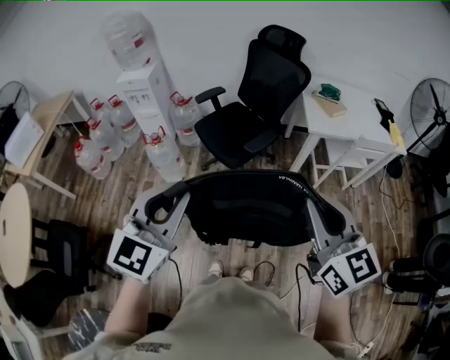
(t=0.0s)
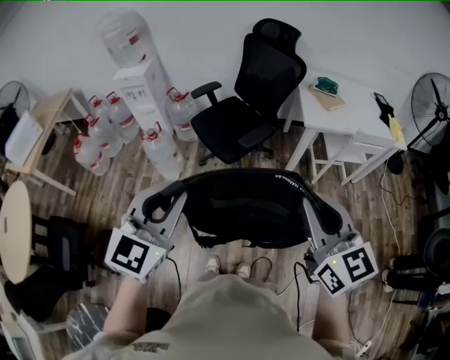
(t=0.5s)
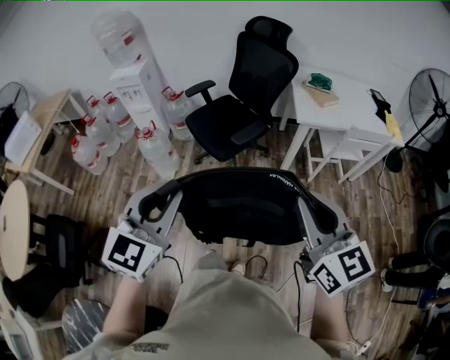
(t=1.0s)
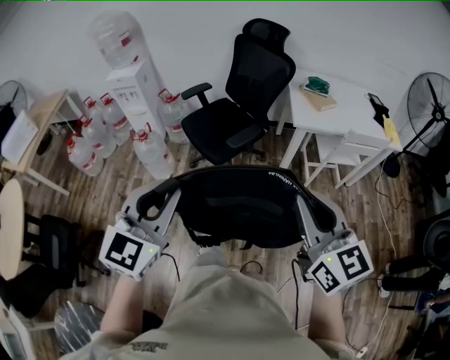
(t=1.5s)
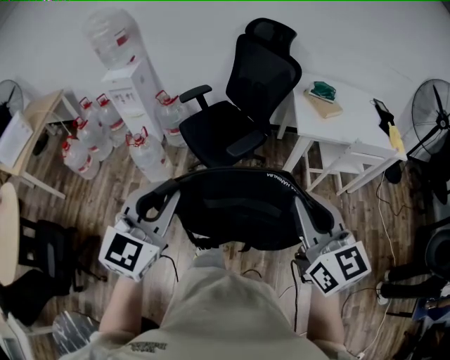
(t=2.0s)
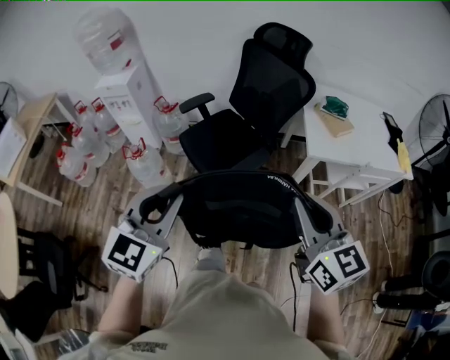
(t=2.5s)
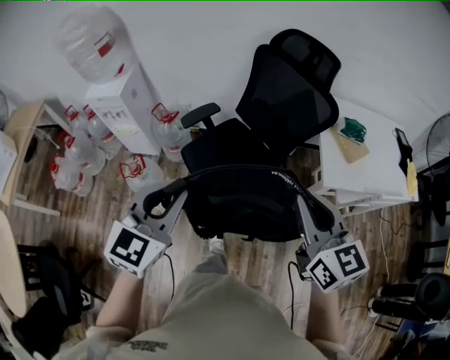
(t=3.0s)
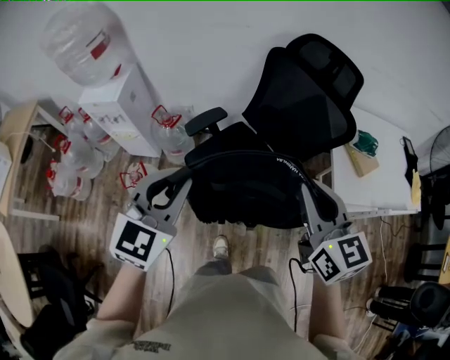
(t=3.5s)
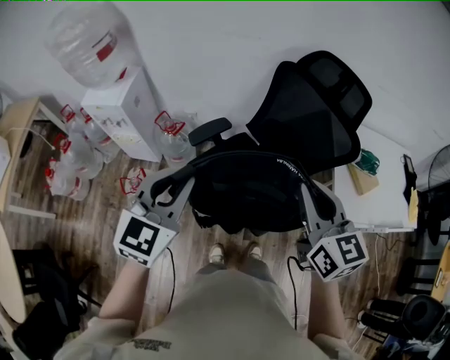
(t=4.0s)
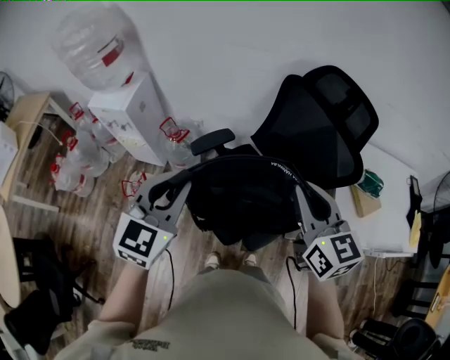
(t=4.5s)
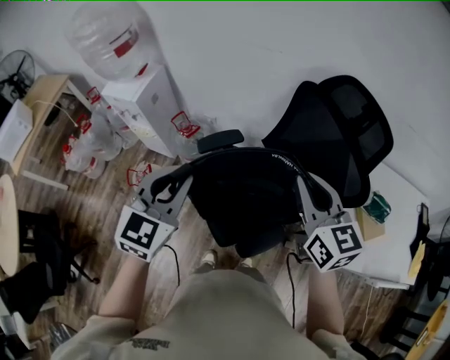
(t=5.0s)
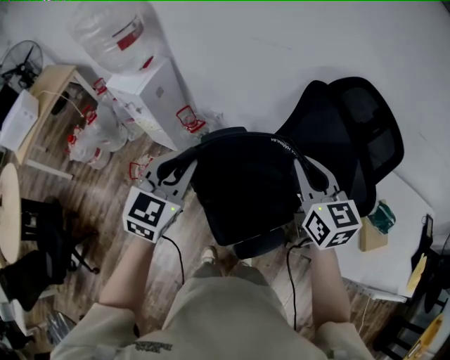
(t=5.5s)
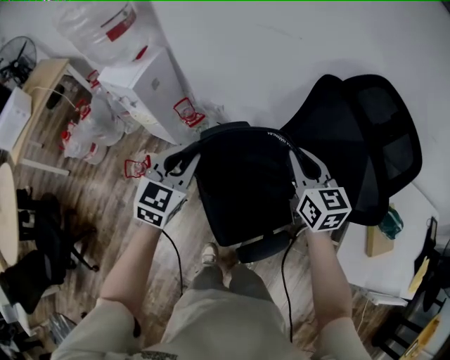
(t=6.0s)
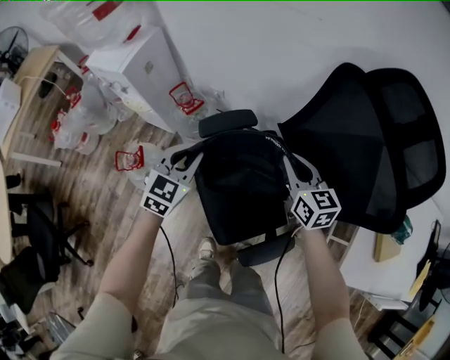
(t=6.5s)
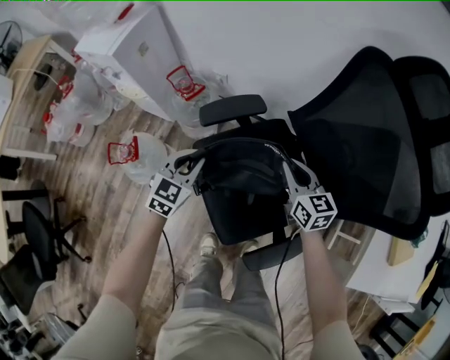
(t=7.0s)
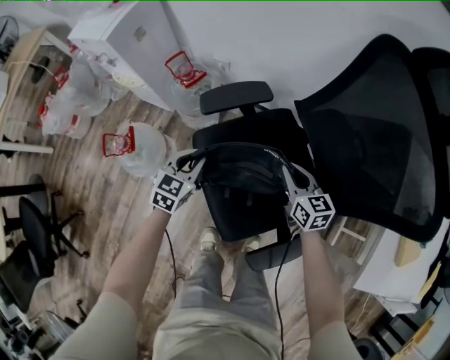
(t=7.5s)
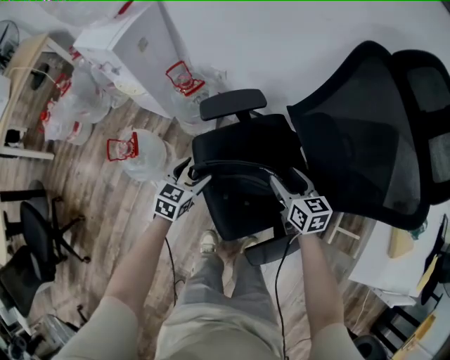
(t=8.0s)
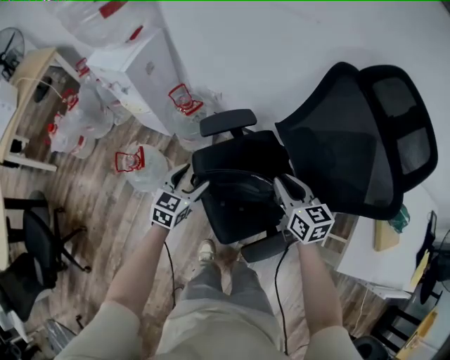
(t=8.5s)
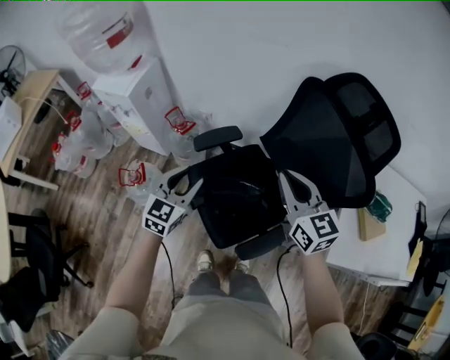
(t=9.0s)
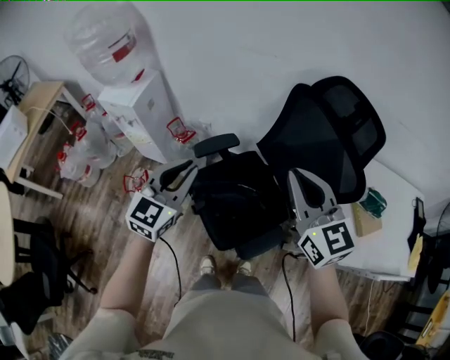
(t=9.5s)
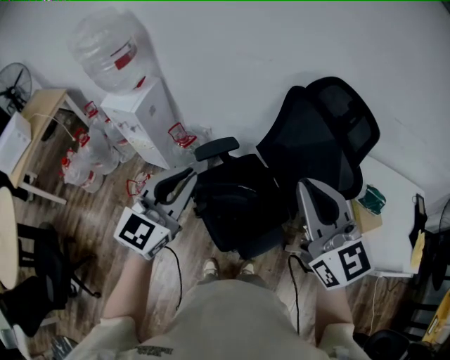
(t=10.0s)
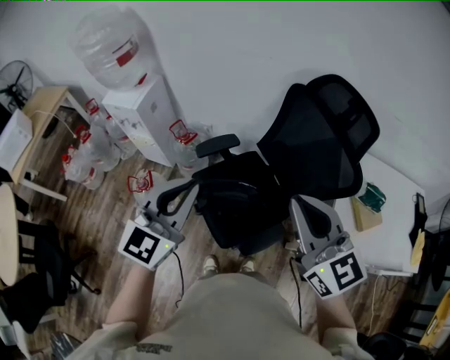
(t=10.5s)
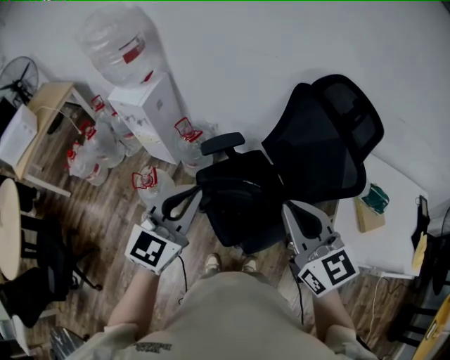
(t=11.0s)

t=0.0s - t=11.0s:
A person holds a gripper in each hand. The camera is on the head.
t=0.0s - t=2.0s: The left gripper is displaced to the right, forward and downward by roughly 10 cm. Meanwhile the right gripper moves forward, to the right and downward, roughly 15 cm.
t=2.0s - t=3.5s: Both grippers are carried forward, roughly 50 cm.
t=3.5s - t=5.5s: Both grippers move forward, about 20 cm. The left gripper turns by roughly 20 degrees.
t=5.5s - t=7.5s: Both grippers travel together downward, some 50 cm.
t=7.5s - t=9.0s: Both grippers move upward, roughly 35 cm. The left gripper opens up; the right gripper turns by some 20 degrees, and opens, then closes again.
t=9.0s - t=11.0s: The right gripper shifts approximately 20 cm backward and upward, while the left gripper goes approximately 25 cm upward and backward, and closes its fingers.

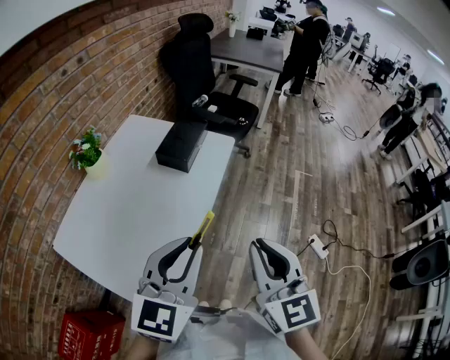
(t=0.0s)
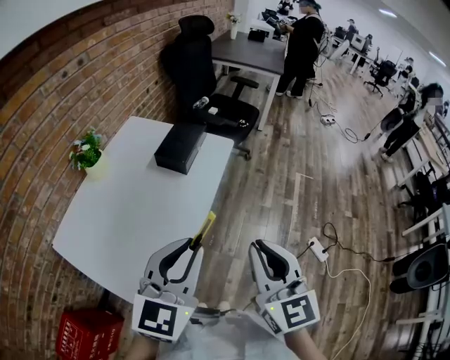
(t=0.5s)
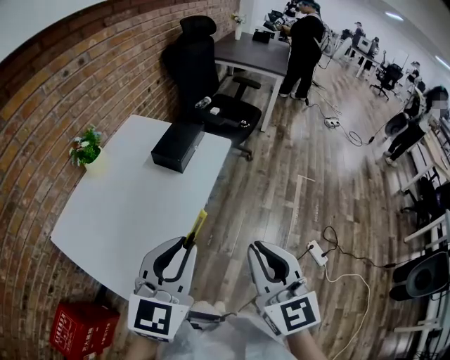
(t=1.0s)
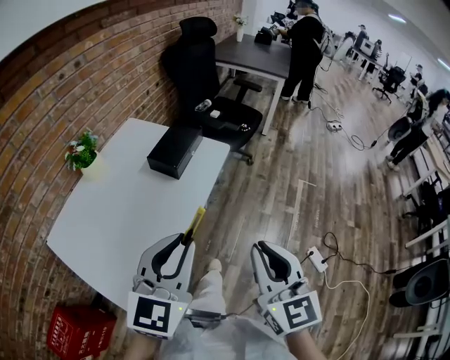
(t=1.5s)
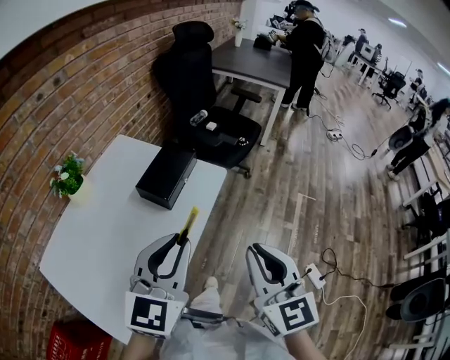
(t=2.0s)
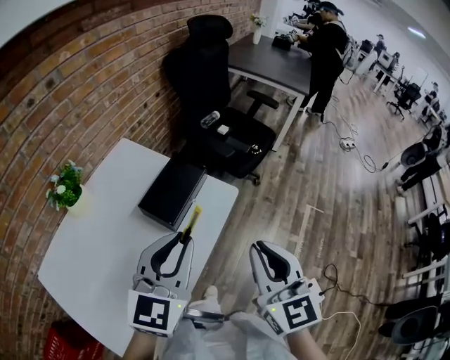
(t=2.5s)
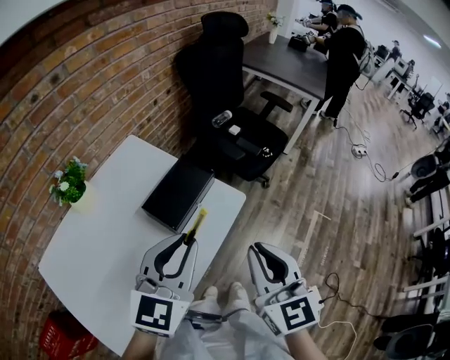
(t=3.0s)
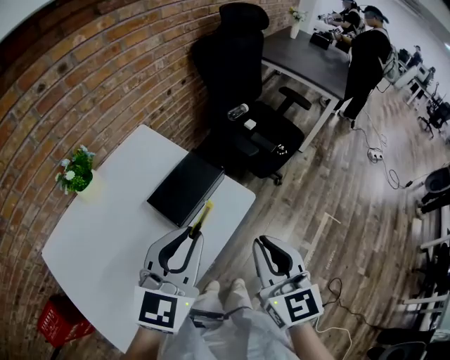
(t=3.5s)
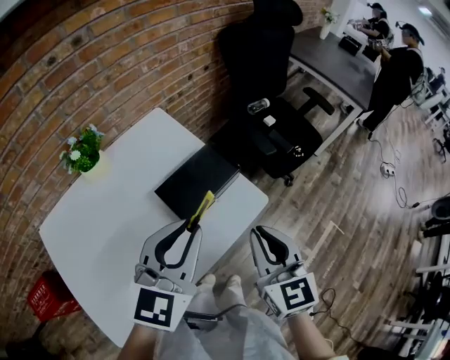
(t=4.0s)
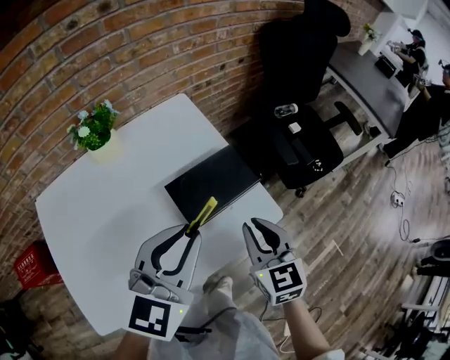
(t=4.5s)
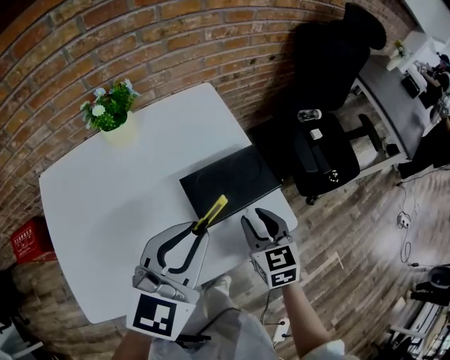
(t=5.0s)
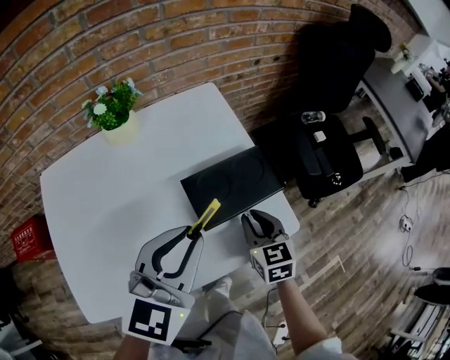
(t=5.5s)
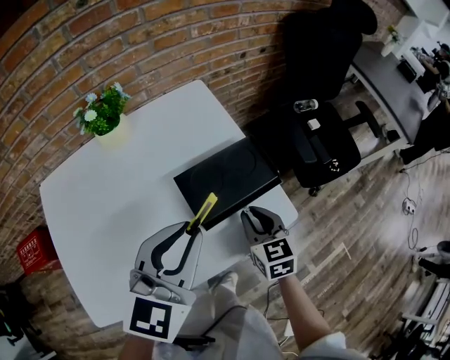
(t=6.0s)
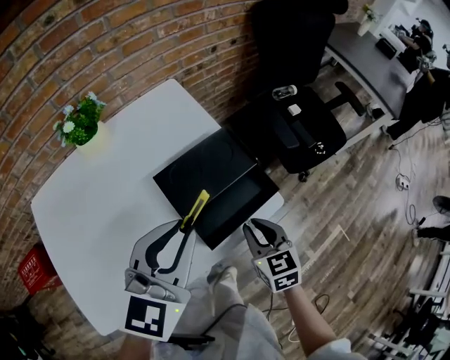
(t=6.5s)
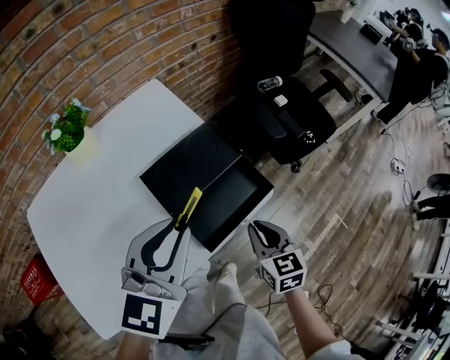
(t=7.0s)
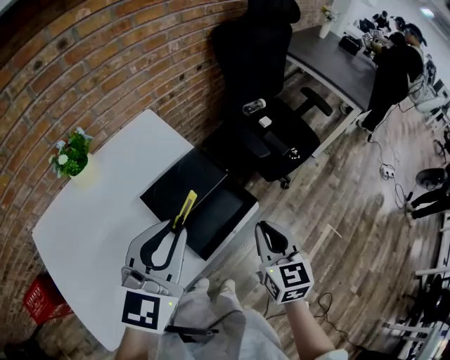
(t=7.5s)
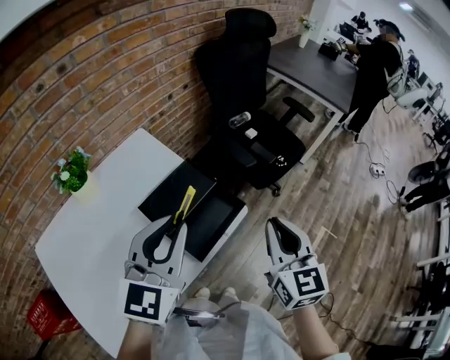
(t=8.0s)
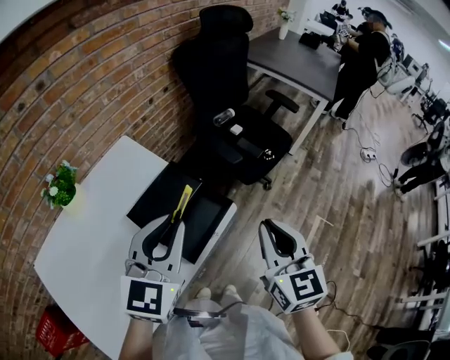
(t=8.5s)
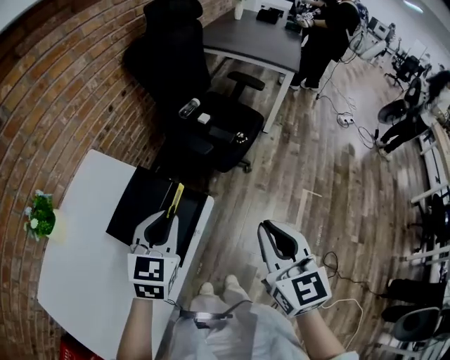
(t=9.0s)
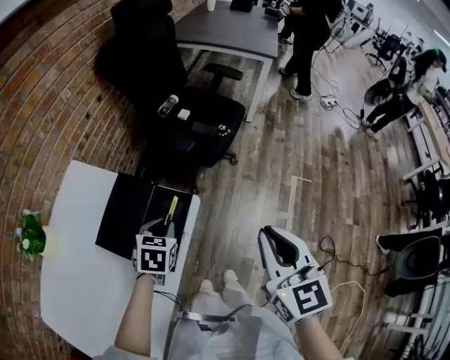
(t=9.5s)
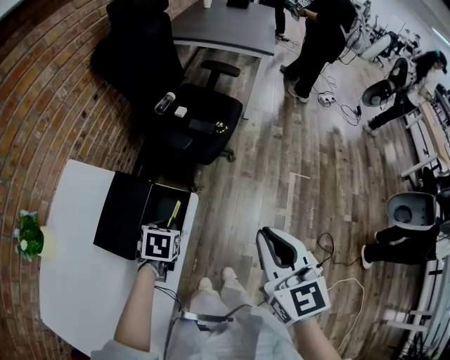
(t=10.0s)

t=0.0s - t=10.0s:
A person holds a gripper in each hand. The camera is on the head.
t=0.0s - t=2.0s: The left gripper goes approximately 20 cm forward. Meanwhile the right gripper shifts about 20 cm forward and to the right.
t=2.0s - t=4.0s: The two grippers go approximately 25 cm forward. The right gripper turns by some 20 degrees.
t=4.0s - t=6.0s: The right gripper travels downward and forward by roughly 25 cm, and changes its angle by about 30 degrees. The left gripper goes approximately 5 cm downward.
t=6.0s - t=8.0s: The left gripper is displaced upward and to the right by about 15 cm. Meanwhile the right gripper shifts approximately 30 cm upward, to the right and backward, and swivels approximately 40 degrees.
t=8.0s - t=10.0s: The left gripper is displaced downward by roughly 30 cm, and tilts its fingers roughly 60 degrees downward. Meanwhile the right gripper goes about 10 cm to the right and backward.

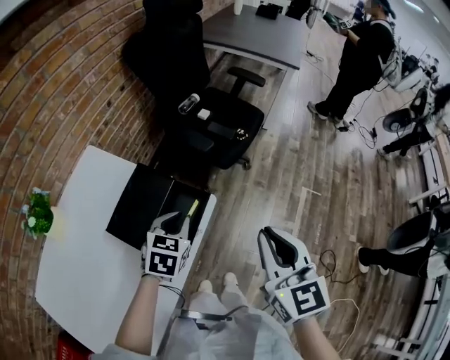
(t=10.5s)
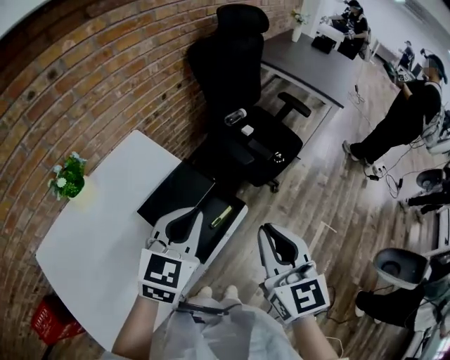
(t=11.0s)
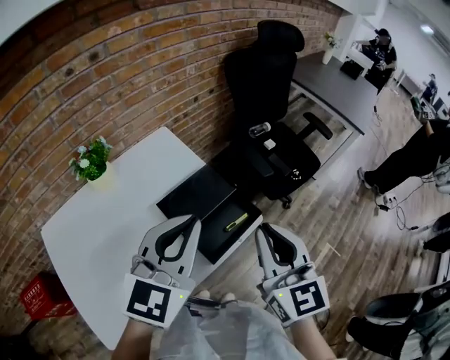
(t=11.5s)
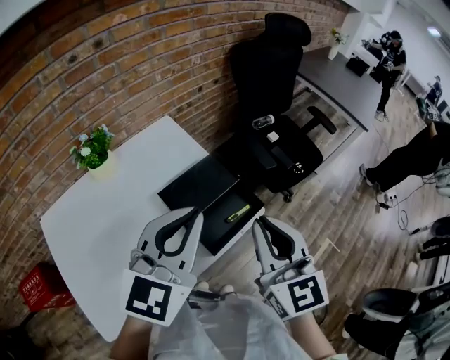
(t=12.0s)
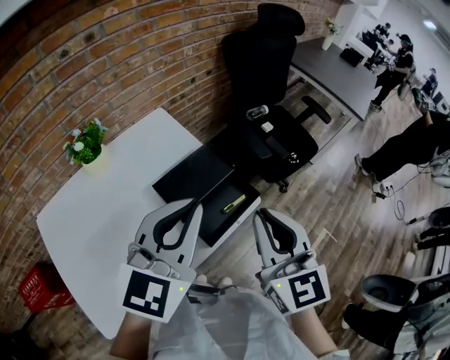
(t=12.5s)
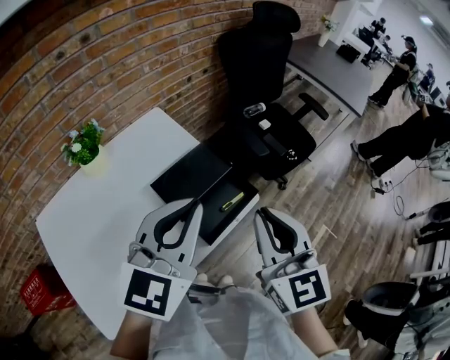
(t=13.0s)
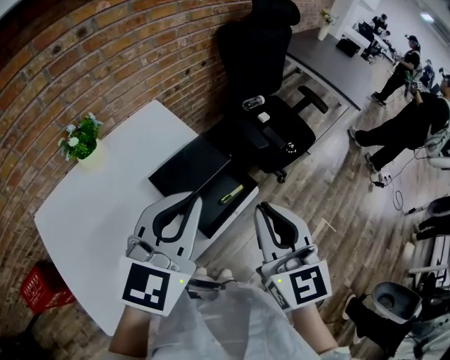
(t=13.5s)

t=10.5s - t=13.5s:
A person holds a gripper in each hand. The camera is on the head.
t=10.5s - t=12.0s: The right gripper shifts some 15 cm to the left and upward, and changes its angle by roughly 30 degrees, while the left gripper shifts about 30 cm upward and to the left, and tilts its fingers some 40 degrees upward.
t=12.0s - t=13.5s: The grippers stay close to where they were, moving slightly.

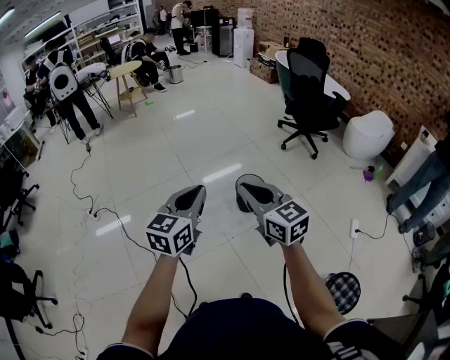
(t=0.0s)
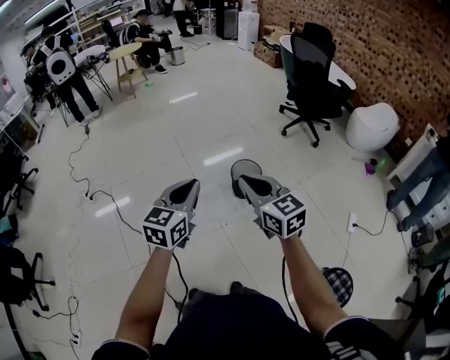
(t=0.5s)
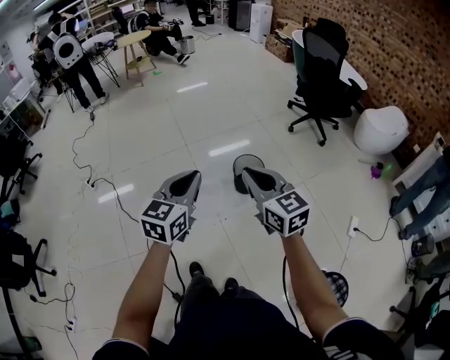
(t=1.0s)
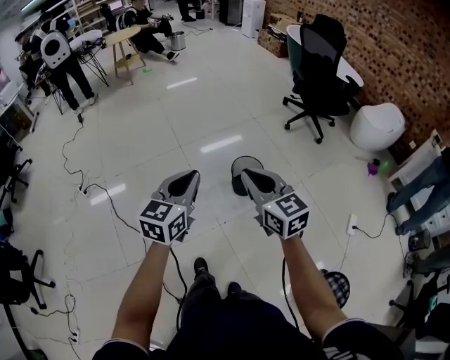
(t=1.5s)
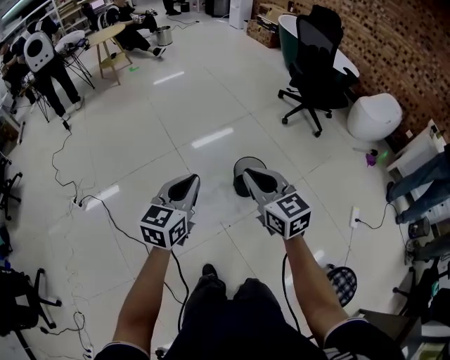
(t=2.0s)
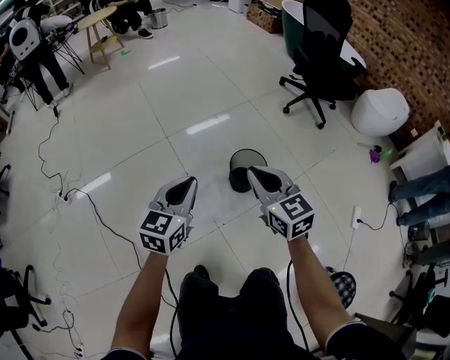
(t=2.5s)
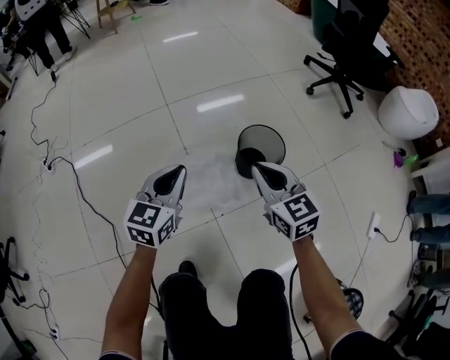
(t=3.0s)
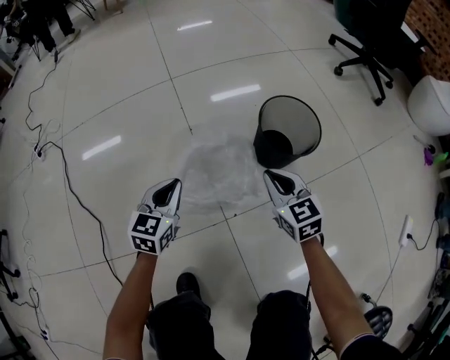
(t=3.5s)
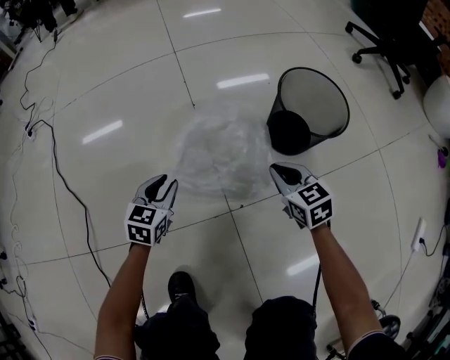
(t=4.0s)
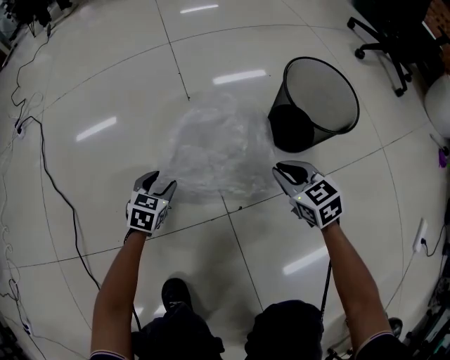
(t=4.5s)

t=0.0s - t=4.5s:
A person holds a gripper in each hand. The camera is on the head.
t=0.0s - t=2.0s: The right gripper is displaced forward by roughly 20 cm. Meanwhile the left gripper moves forward and downward, approximately 20 cm.
t=2.0s - t=4.5s: The two grippers go about 80 cm downward. The right gripper turns by some 30 degrees; the left gripper tips its fingers downward by roughly 30 degrees, and opens up.
